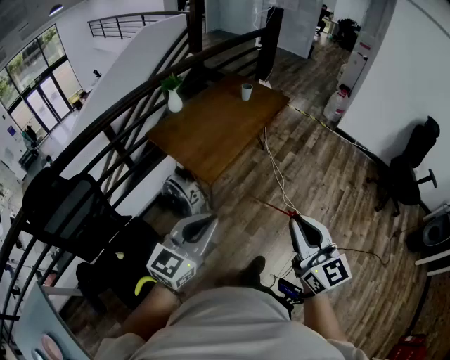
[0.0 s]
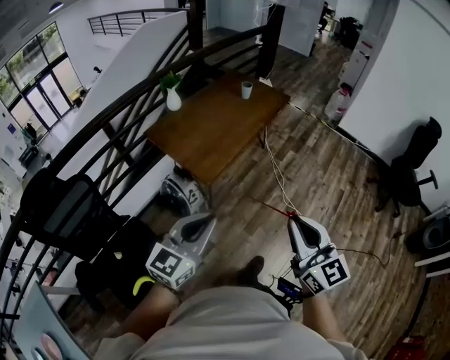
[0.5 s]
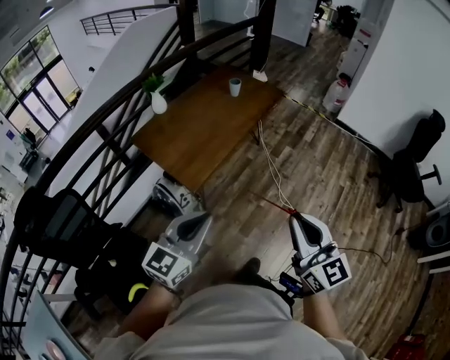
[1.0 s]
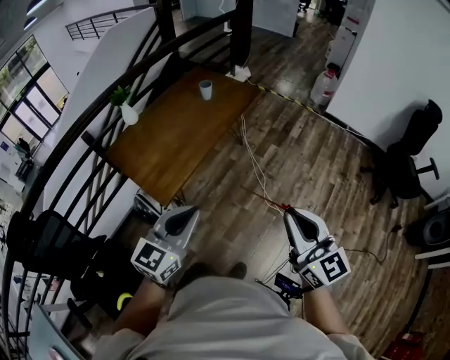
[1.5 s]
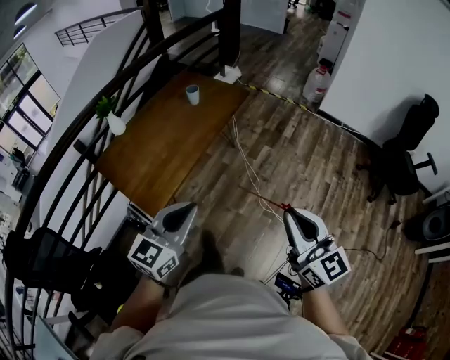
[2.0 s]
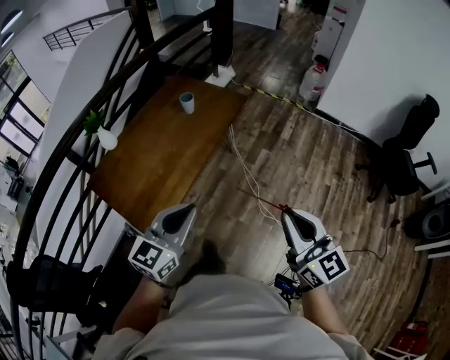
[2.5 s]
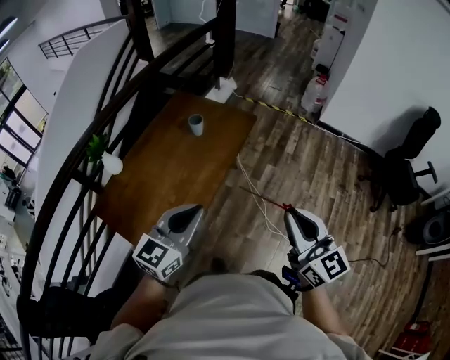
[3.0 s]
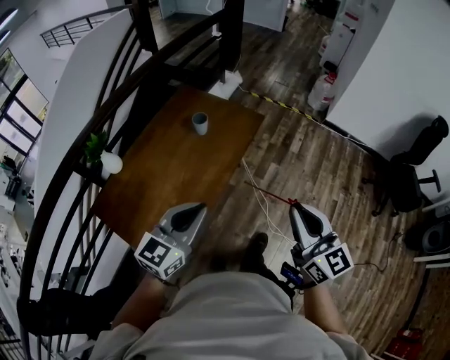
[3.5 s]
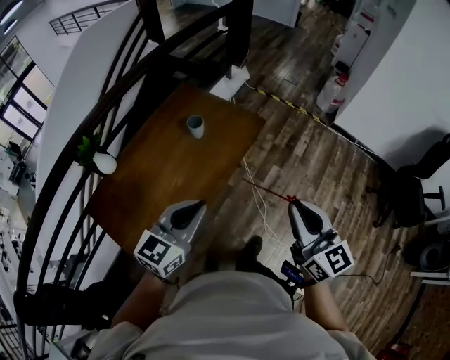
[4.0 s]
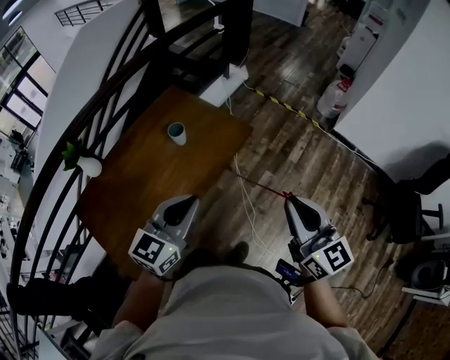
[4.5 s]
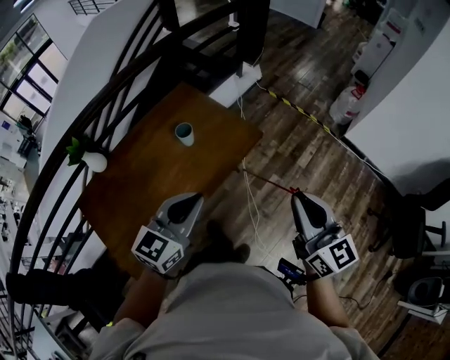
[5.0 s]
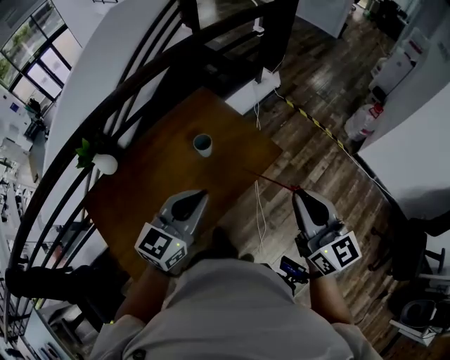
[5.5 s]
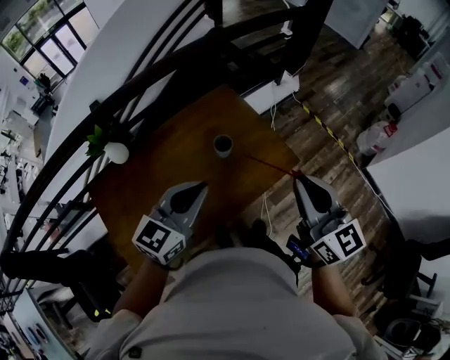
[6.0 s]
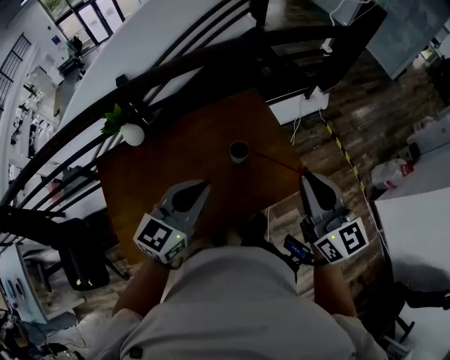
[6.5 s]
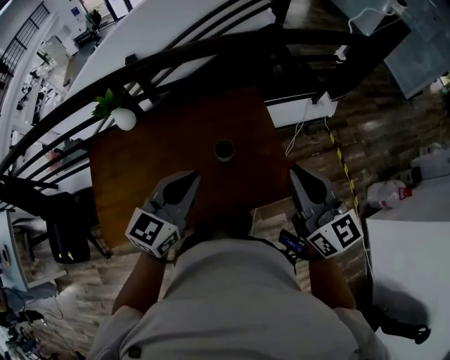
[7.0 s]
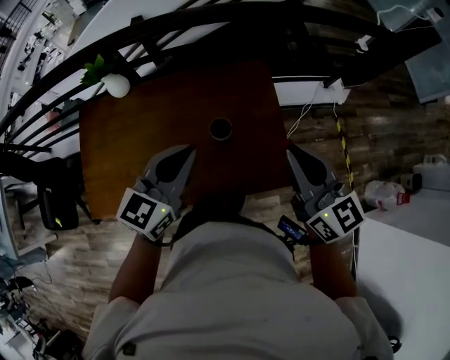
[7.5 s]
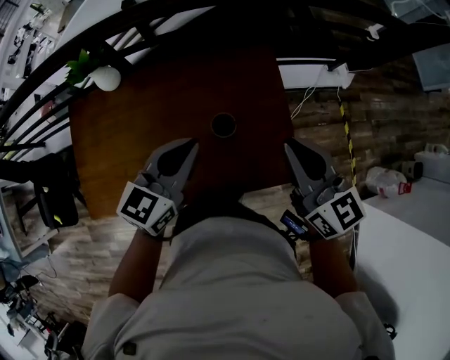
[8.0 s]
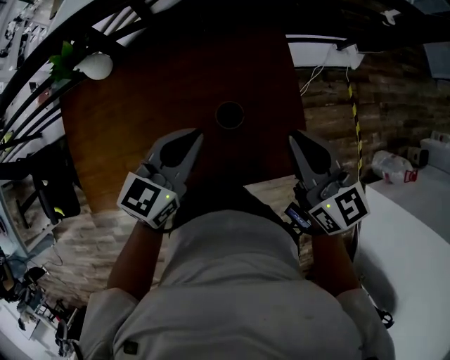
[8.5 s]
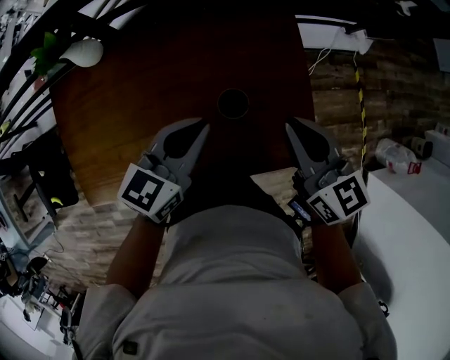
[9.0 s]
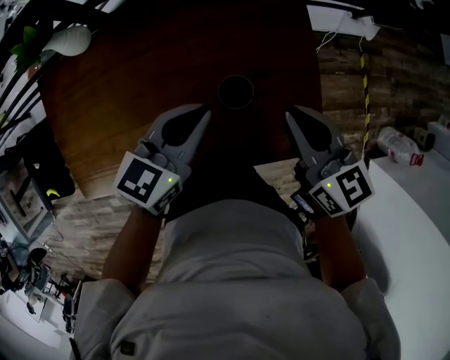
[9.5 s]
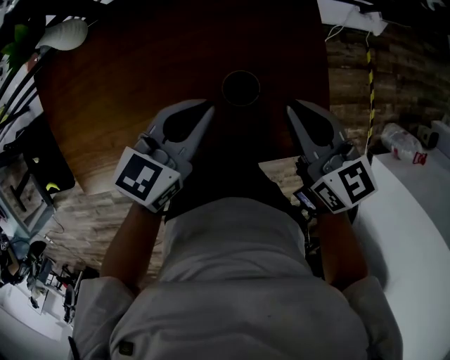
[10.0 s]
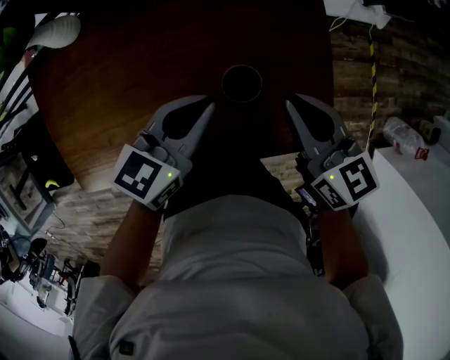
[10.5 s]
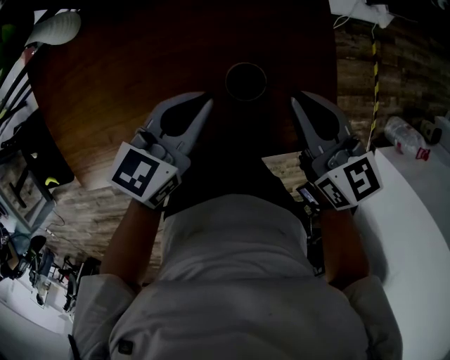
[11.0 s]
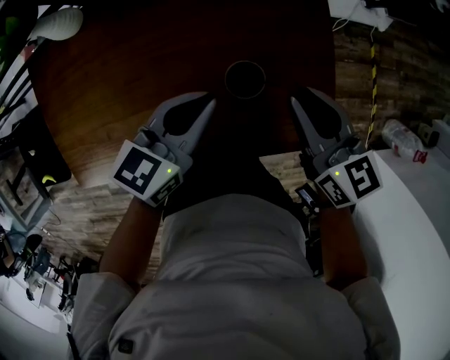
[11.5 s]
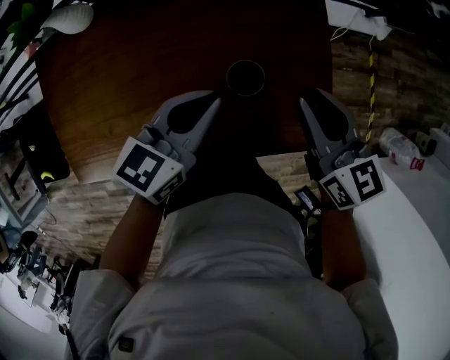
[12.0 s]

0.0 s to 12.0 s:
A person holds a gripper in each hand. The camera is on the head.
0.0 to 2.0 s: The pair of grippers is taken forward and to the right, some 40 cm.
2.0 to 4.0 s: The two grippers travel together, forward, some 50 cm.
4.0 to 6.0 s: The grippers both shift forward by some 30 cm. The right gripper changes its angle by approximately 20 degrees.
6.0 to 8.0 s: The left gripper moves some 25 cm, and changes its angle by roughly 30 degrees. The right gripper ends up approximately 30 cm from where it was, and changes its angle by roughly 30 degrees.
8.0 to 10.0 s: The two grippers go some 20 cm downward.
10.0 to 12.0 s: There are only small adjustments of the grippers.

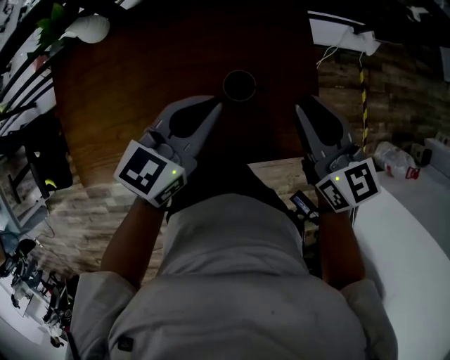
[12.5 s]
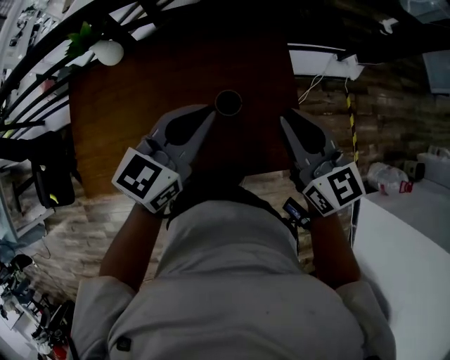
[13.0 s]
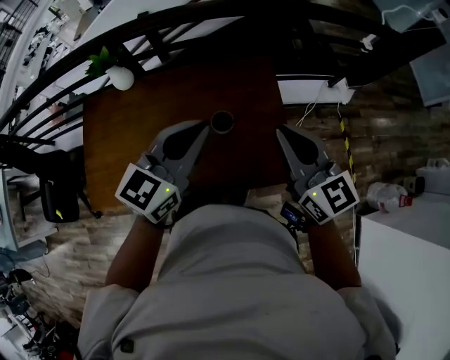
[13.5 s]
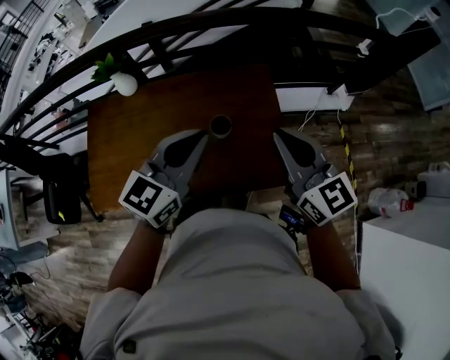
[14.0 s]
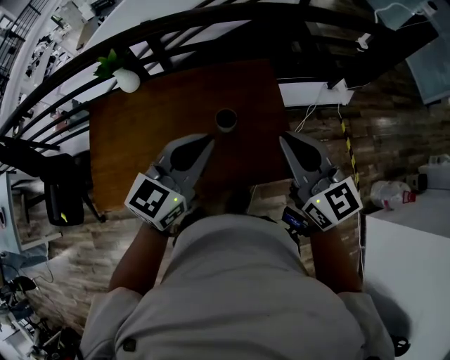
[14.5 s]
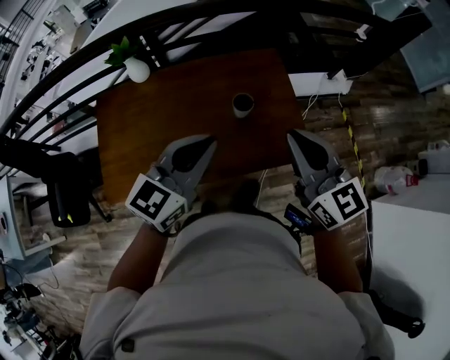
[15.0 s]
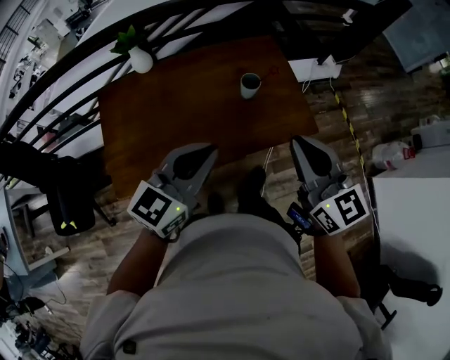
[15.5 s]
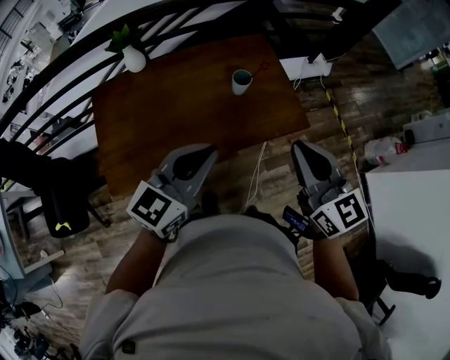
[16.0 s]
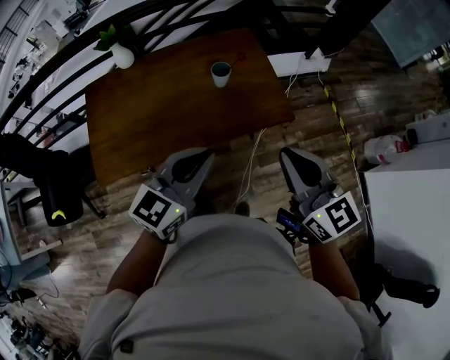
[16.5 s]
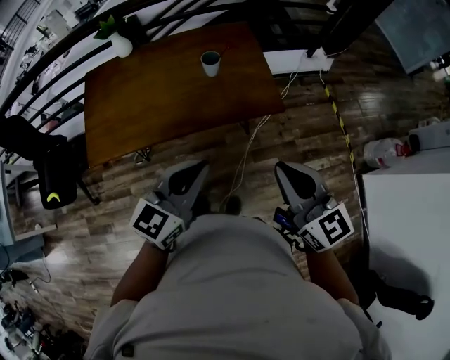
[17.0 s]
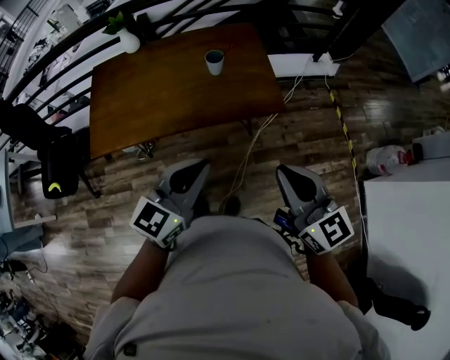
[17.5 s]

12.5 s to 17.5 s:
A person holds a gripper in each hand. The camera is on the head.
12.5 to 15.0 s: The grippers both shift backward and upward by some 30 cm.
15.0 to 17.5 s: Both grippers move backward and to the right, roughly 35 cm.

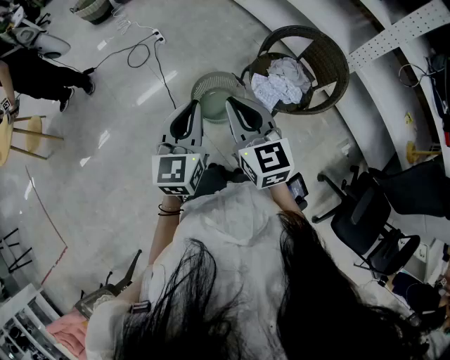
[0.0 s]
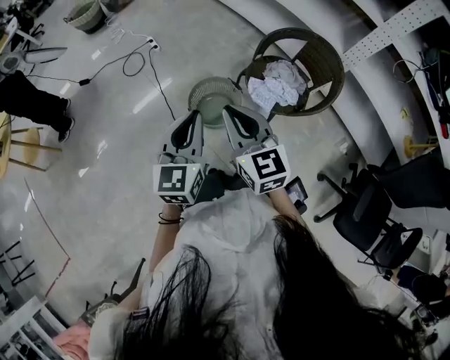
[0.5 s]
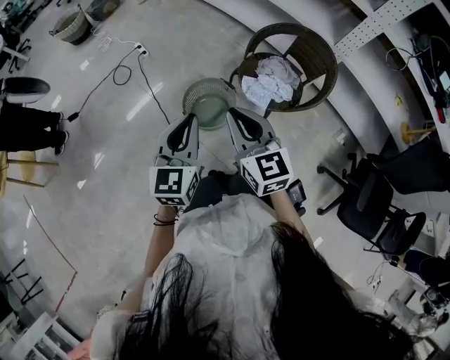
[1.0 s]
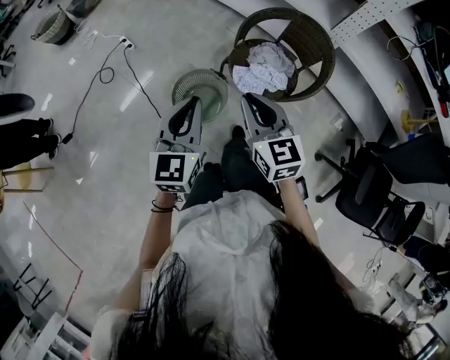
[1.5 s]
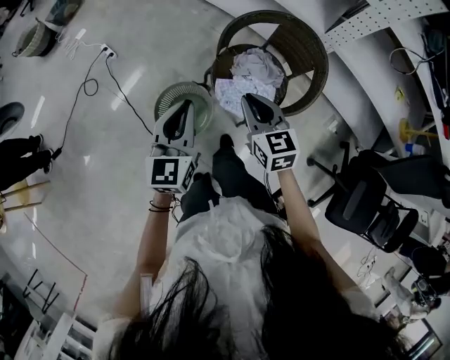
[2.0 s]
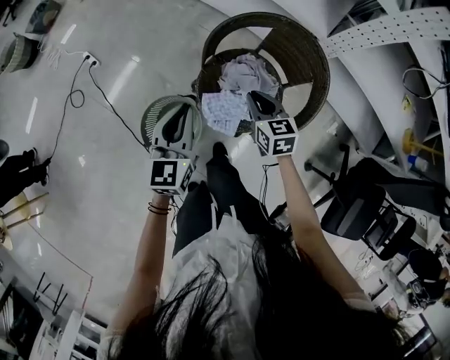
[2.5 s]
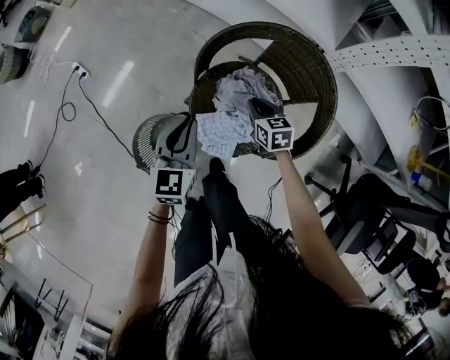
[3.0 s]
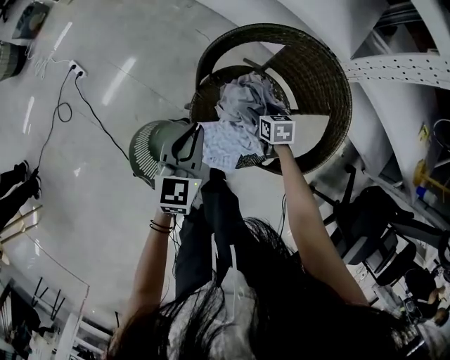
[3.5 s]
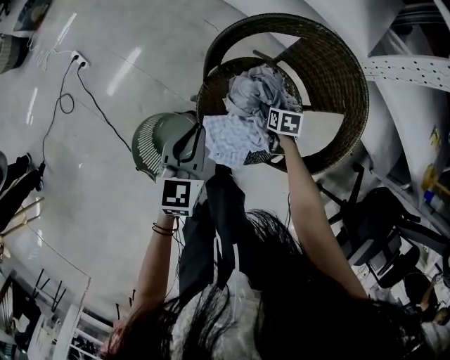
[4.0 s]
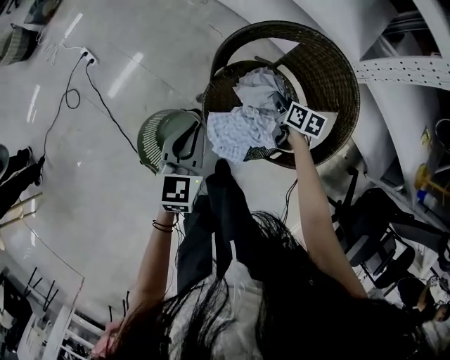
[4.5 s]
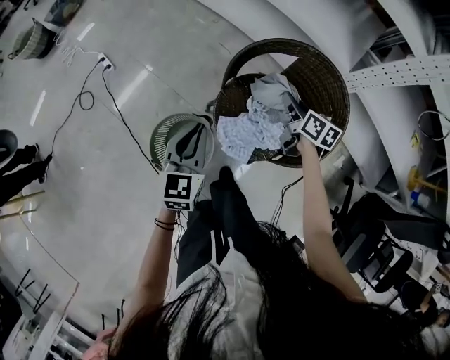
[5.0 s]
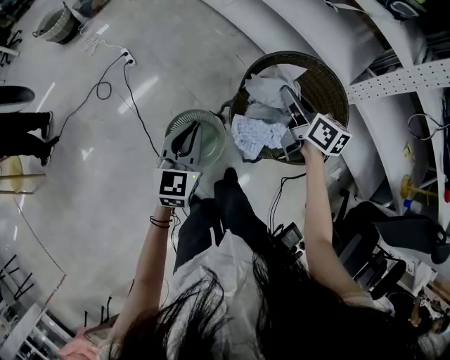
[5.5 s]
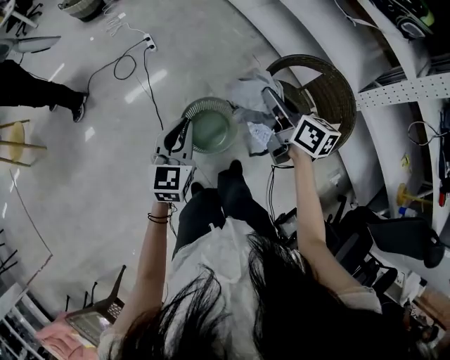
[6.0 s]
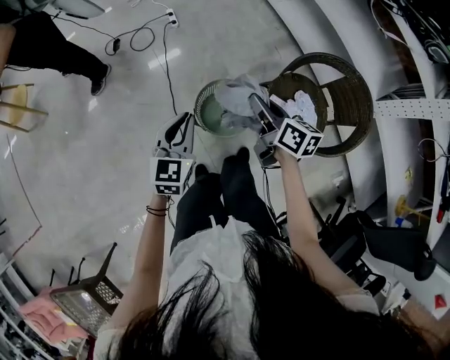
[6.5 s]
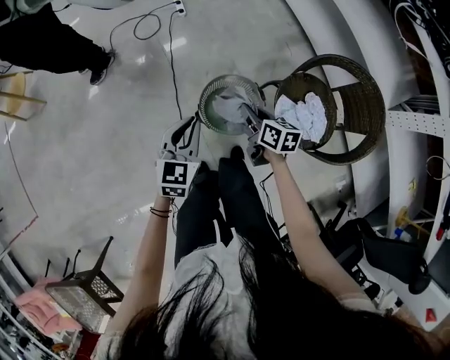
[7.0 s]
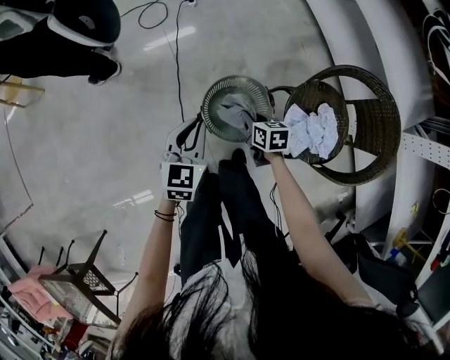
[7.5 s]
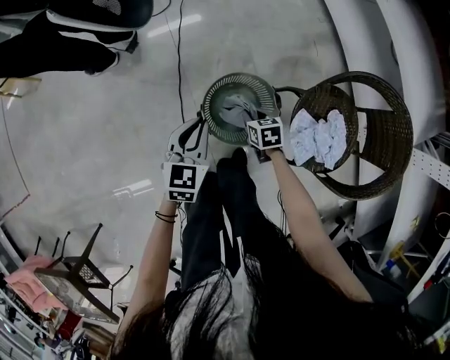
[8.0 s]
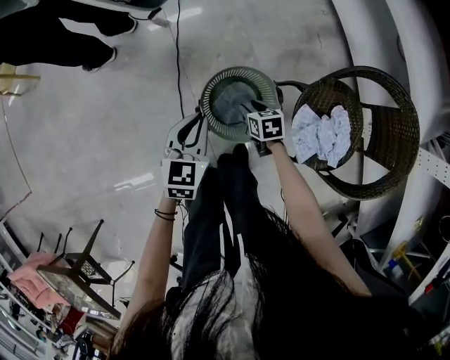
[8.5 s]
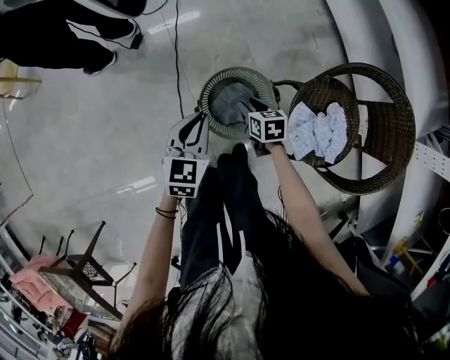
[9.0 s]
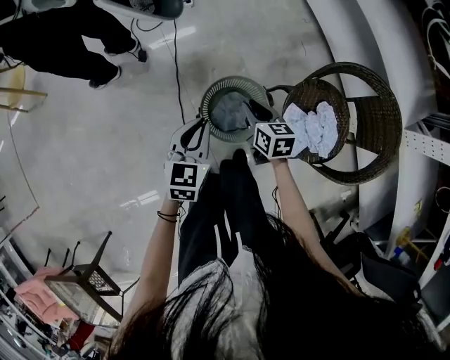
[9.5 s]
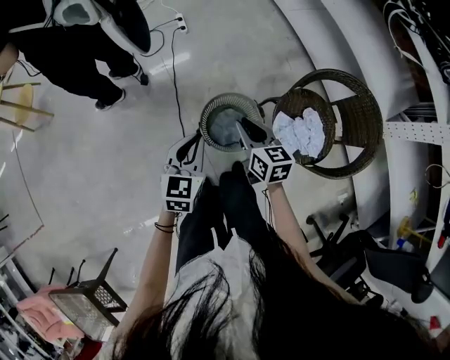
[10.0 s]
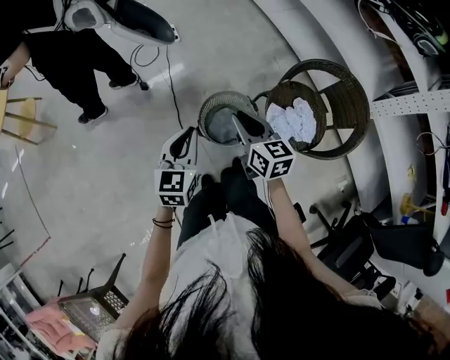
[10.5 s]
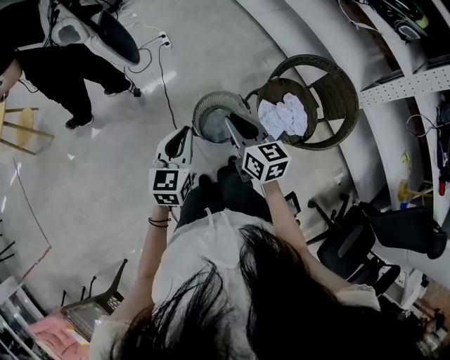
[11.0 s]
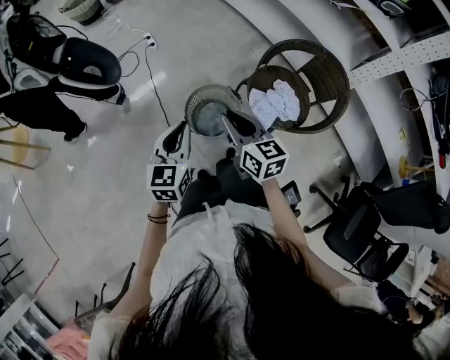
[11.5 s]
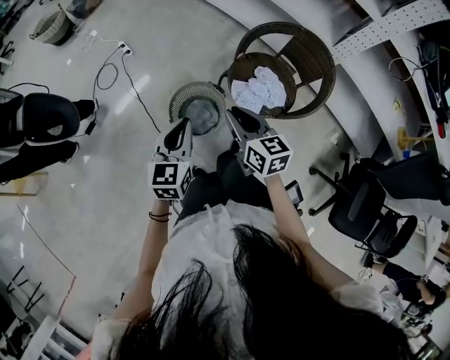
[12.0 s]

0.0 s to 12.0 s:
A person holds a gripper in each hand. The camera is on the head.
0.0 to 2.0 s: The left gripper heads forward, to the right and downward, covering roughly 25 cm. Meanwhile the right gripper goes roughly 30 cm to the right, forward and downward, and turns by some 20 degrees.
2.0 to 4.0 s: The left gripper is displaced downward and forward by roughly 30 cm. The right gripper is displaced downward, forward and to the right by about 50 cm, tips its fingers downward by about 40 degrees, and opens its fingers.
4.0 to 6.0 s: The right gripper travels upward and to the left by about 60 cm, tilts its fingers some 50 degrees upward, and closes its fingers. Meanwhile the left gripper is displaced to the left, upward and backward by about 40 cm, and turns by some 20 degrees.
6.0 to 8.0 s: The left gripper is displaced downward by about 25 cm, and changes its angle by about 20 degrees; the right gripper goes roughly 50 cm downward, and tips its fingers downward by about 40 degrees.
8.0 to 10.0 s: The left gripper shifts approximately 15 cm upward; the right gripper is displaced upward by roughly 30 cm, and tilts its fingers roughly 30 degrees upward.
10.0 to 12.0 s: The right gripper moves upward, backward and to the right, roughly 20 cm. The left gripper heads upward, to the right and backward, covering some 15 cm.
